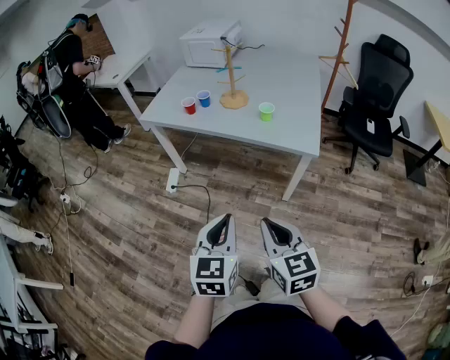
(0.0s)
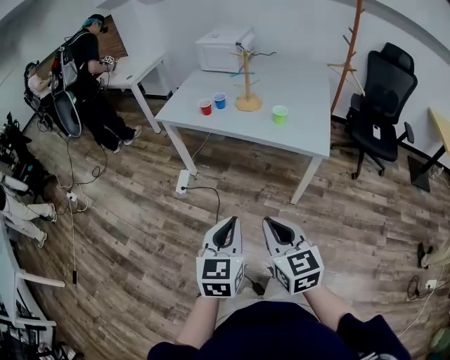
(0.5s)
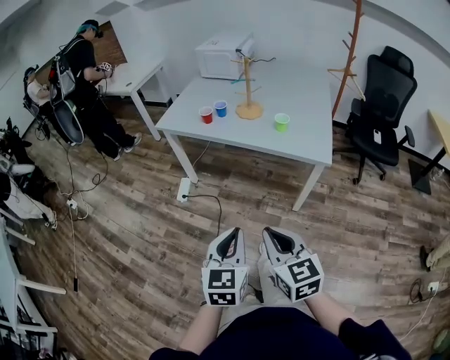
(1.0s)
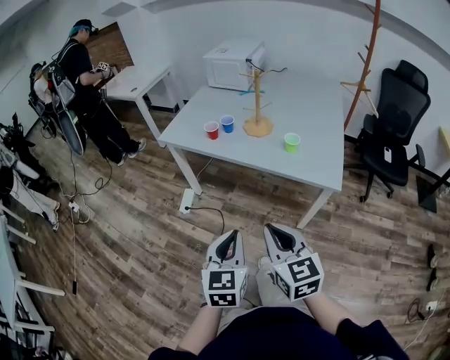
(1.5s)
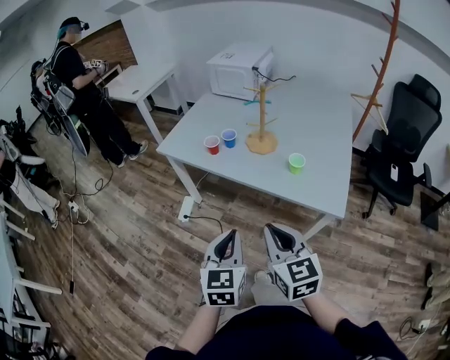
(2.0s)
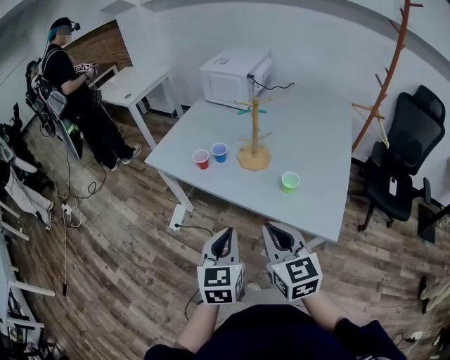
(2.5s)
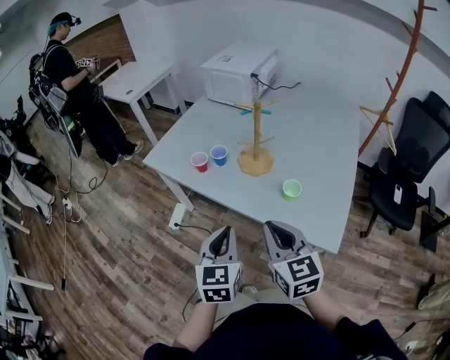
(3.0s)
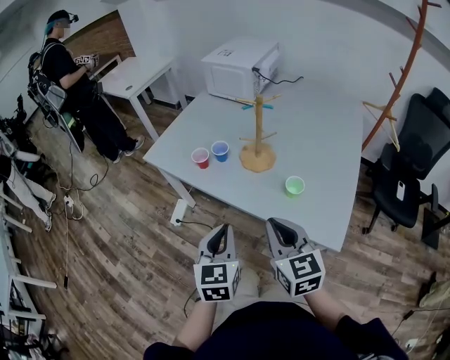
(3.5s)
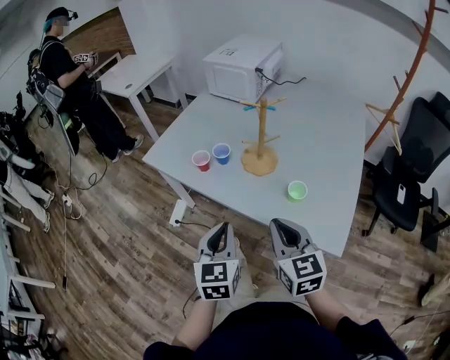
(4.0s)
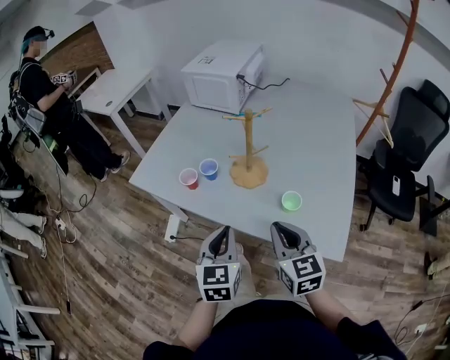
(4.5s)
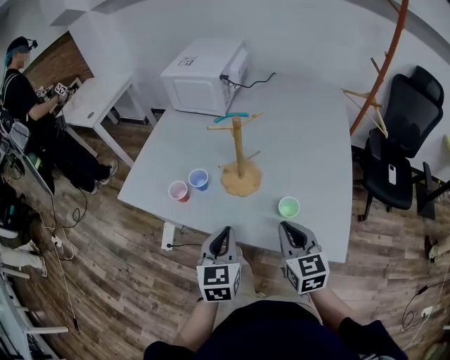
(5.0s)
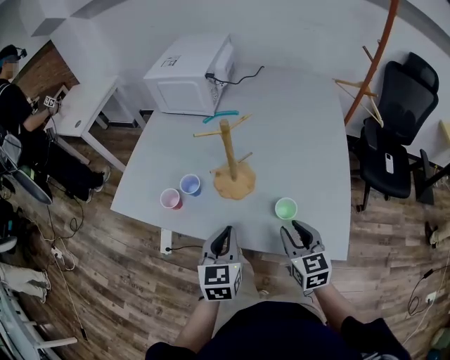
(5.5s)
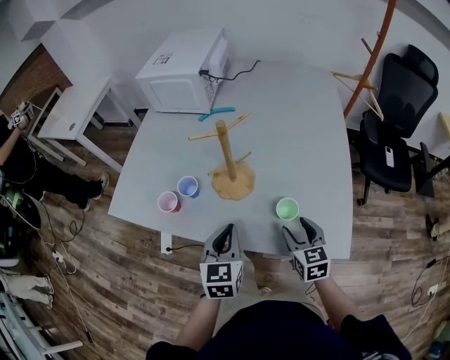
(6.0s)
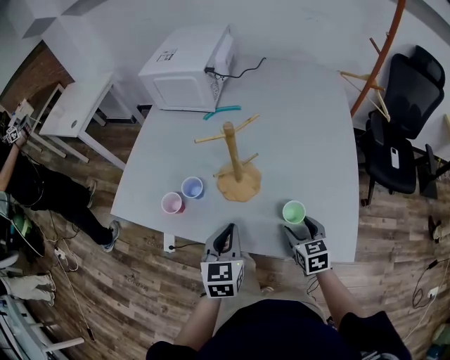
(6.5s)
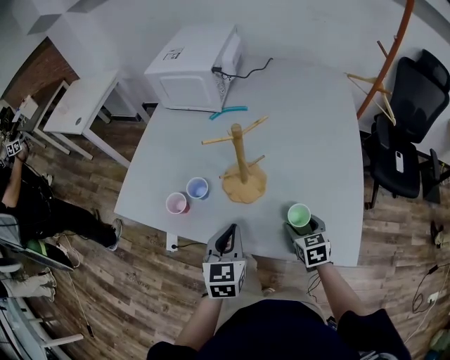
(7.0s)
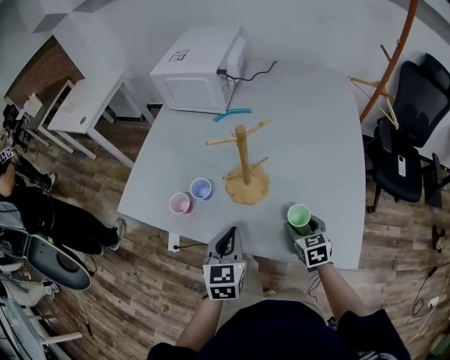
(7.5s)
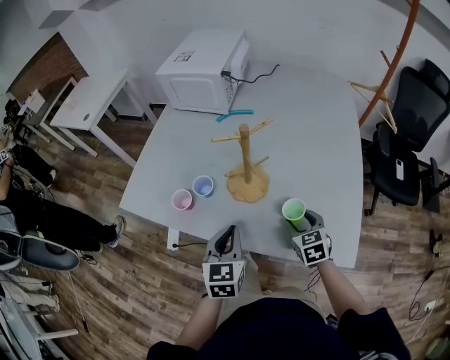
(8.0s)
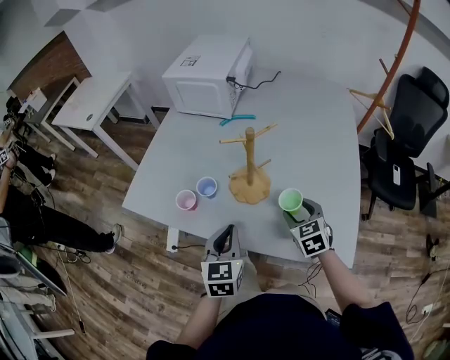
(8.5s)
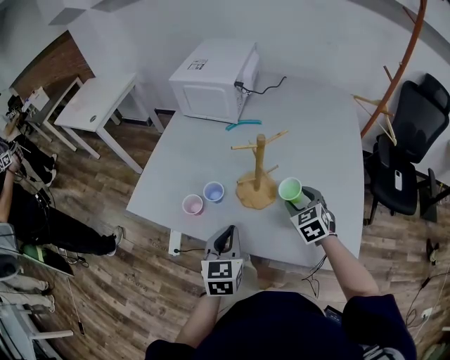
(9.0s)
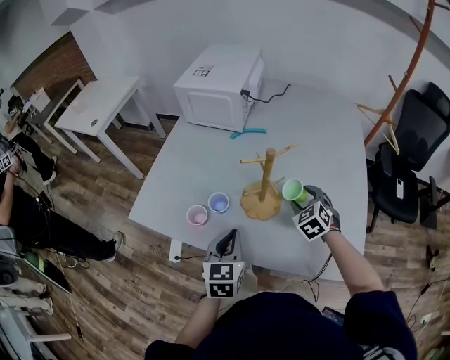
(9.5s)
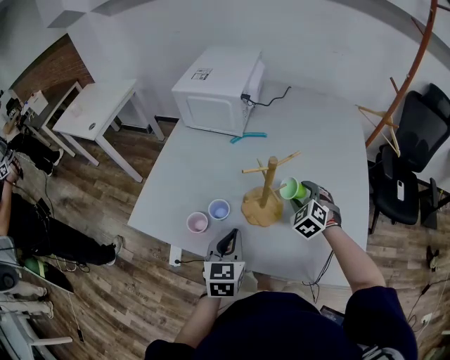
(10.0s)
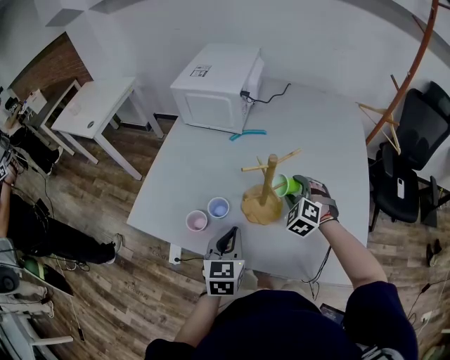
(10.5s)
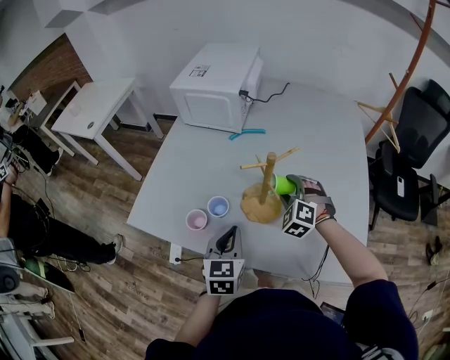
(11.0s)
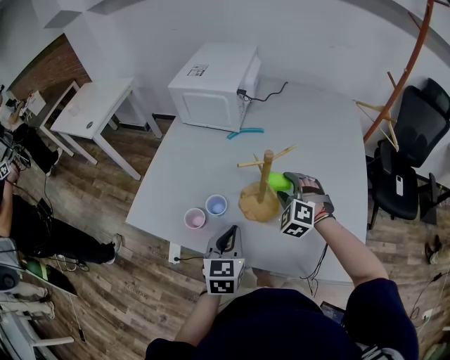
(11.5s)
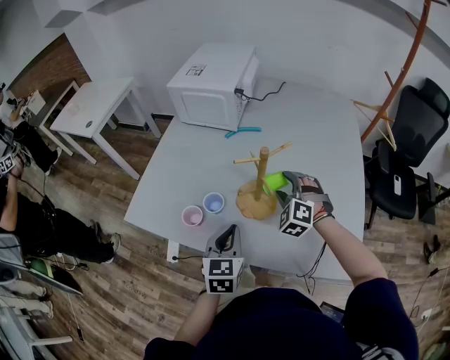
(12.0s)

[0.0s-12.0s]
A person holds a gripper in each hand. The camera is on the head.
0.0s to 2.0s: Both grippers travel together forward, about 20 cm.
2.0s to 4.0s: The left gripper shifts about 15 cm forward; the right gripper is displaced forward and to the right by roughly 15 cm.
4.0s to 6.0s: The left gripper is displaced forward and downward by approximately 15 cm. The right gripper heads downward, to the right and forward, covering about 20 cm, rotates roughly 20 degrees, and opens.
6.0s to 8.0s: The right gripper is displaced forward by approximately 5 cm.
8.0s to 10.0s: The left gripper heads forward, covering about 5 cm. The right gripper is displaced forward by roughly 15 cm, and rotates about 40 degrees.
10.0s to 12.0s: The right gripper ends up some 5 cm from where it was.

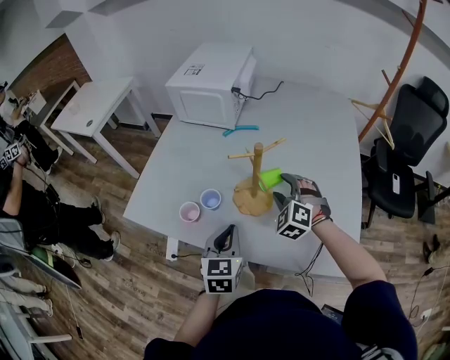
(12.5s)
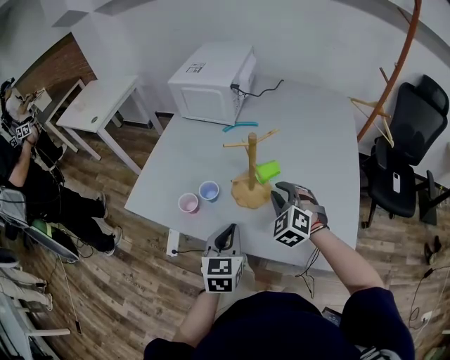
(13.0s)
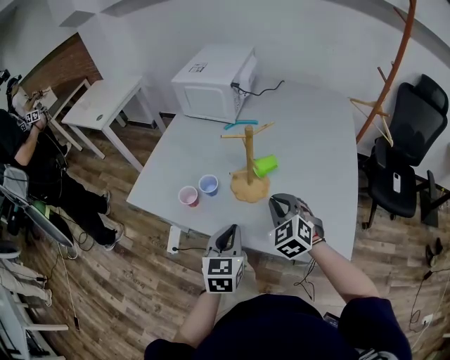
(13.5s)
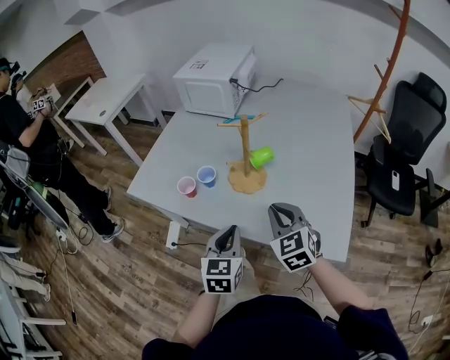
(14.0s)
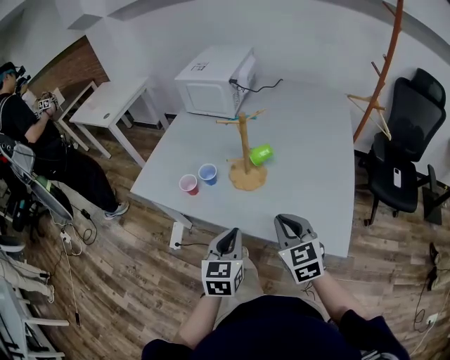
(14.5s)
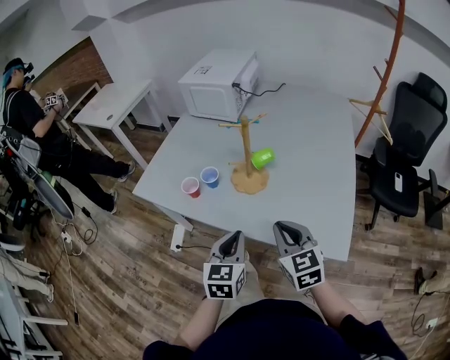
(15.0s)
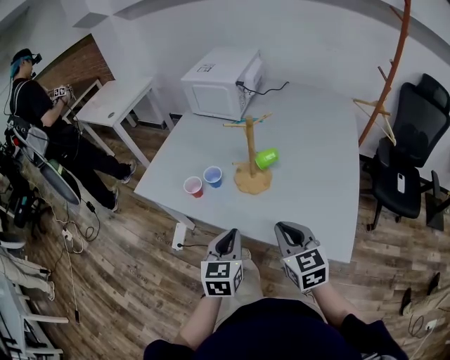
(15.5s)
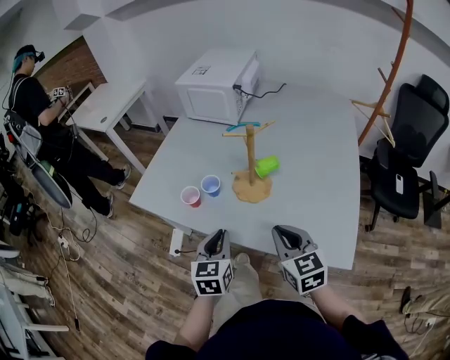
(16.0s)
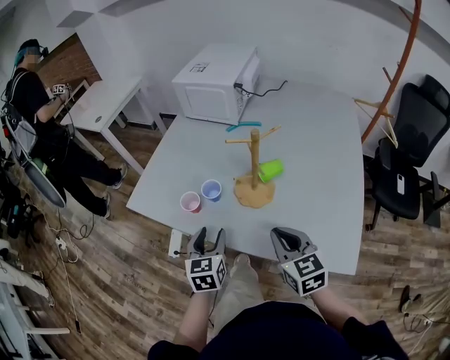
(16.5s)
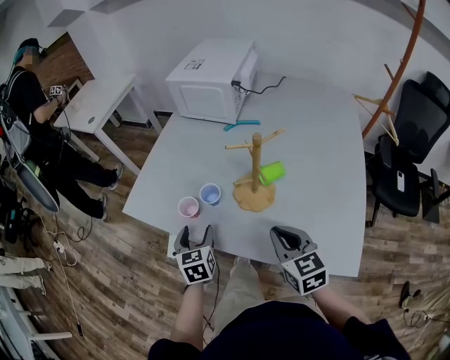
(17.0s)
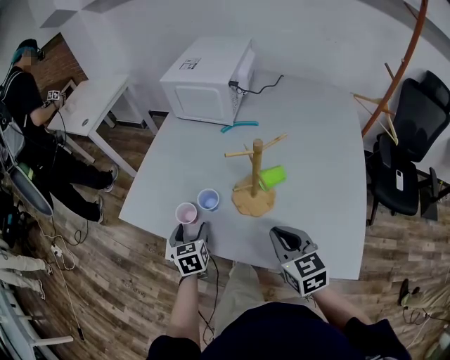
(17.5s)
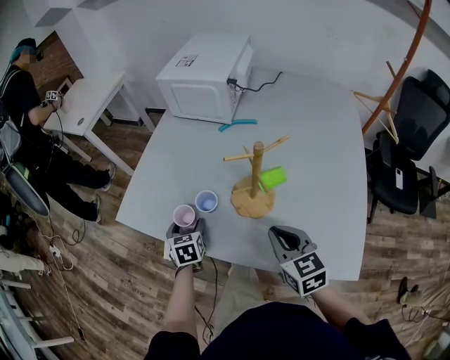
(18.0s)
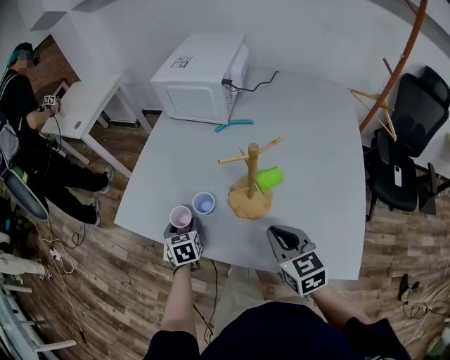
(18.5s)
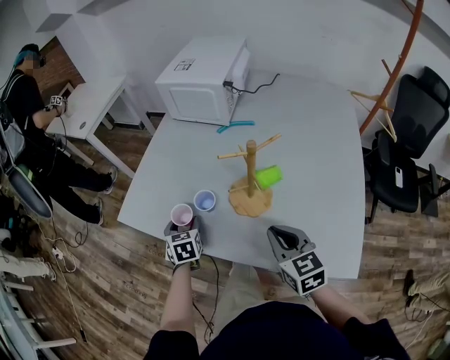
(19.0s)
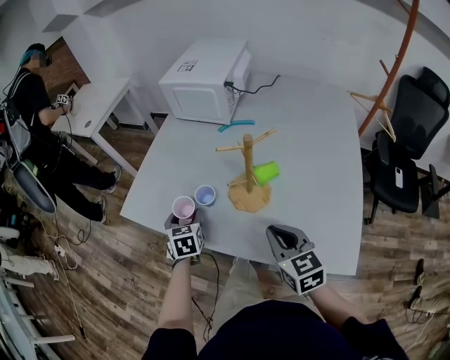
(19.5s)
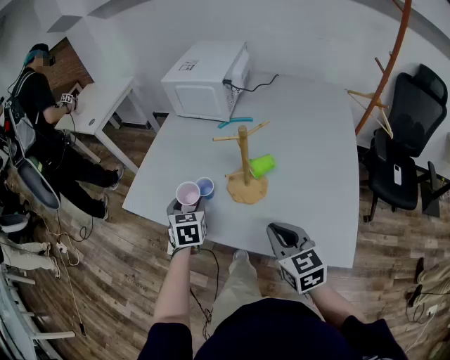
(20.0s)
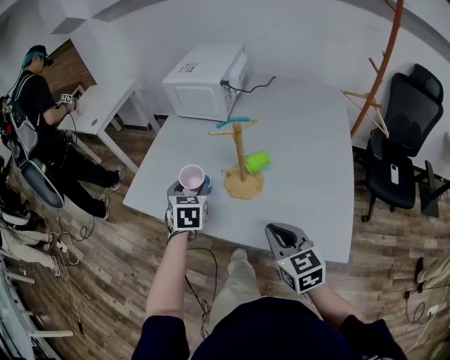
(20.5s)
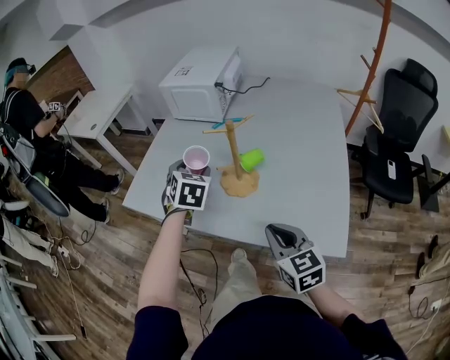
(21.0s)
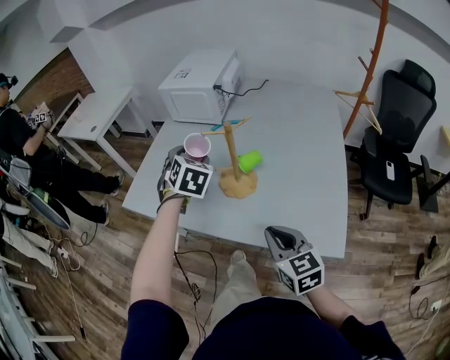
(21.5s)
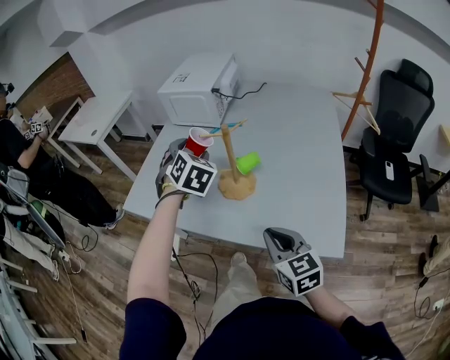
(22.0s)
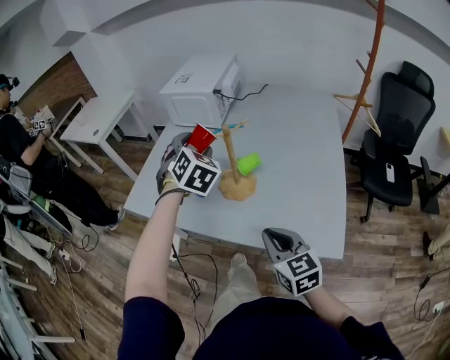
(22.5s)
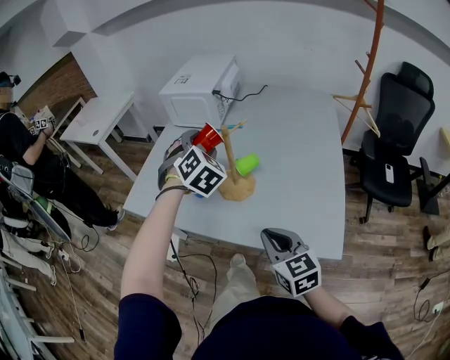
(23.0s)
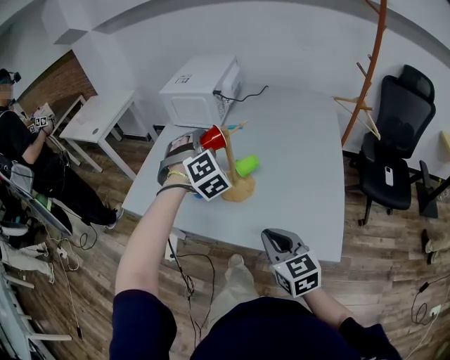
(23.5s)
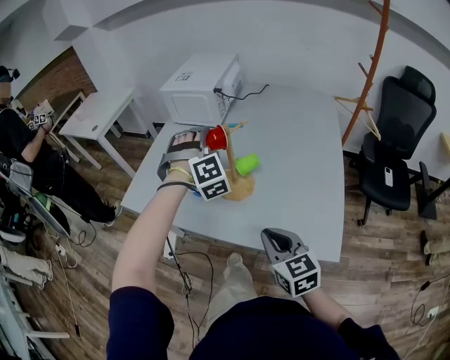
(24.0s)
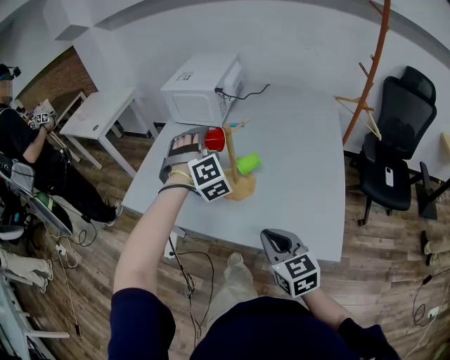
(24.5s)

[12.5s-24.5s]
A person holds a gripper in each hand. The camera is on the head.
12.5s to 14.5s: The right gripper shifts roughly 25 cm backward, rotates around the line of its fingers by about 50 degrees, clockwise from behind, and closes its fingers; the left gripper is displaced backward by approximately 15 cm.
14.5s to 16.5s: The right gripper travels forward by approximately 5 cm. Meanwhile the left gripper goes roughly 15 cm forward and to the left, and opens its fingers.
16.5s to 18.5s: The right gripper goes roughly 5 cm forward, while the left gripper moves forward, downward and to the left, roughly 20 cm.
18.5s to 20.5s: The left gripper is displaced upward and to the right by about 15 cm. The right gripper travels backward by roughly 10 cm.
20.5s to 22.5s: The left gripper is displaced upward and to the right by some 15 cm, and rotates some 30 degrees.
22.5s to 24.5s: The left gripper changes its angle by about 40 degrees.

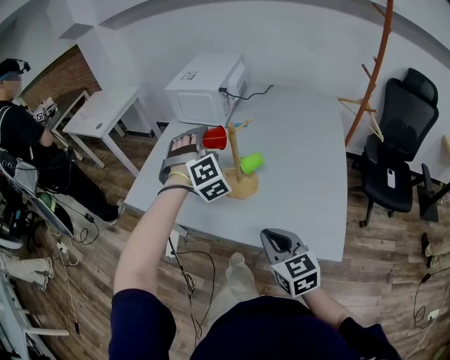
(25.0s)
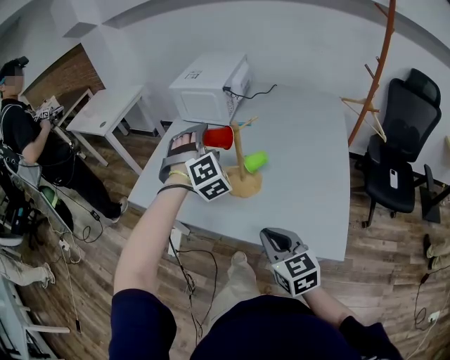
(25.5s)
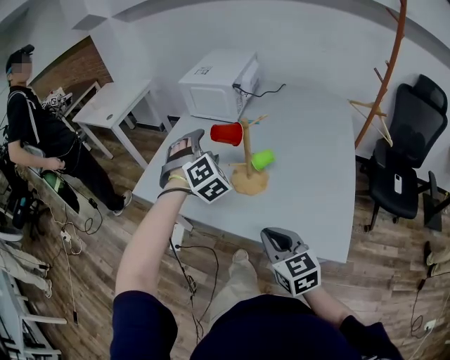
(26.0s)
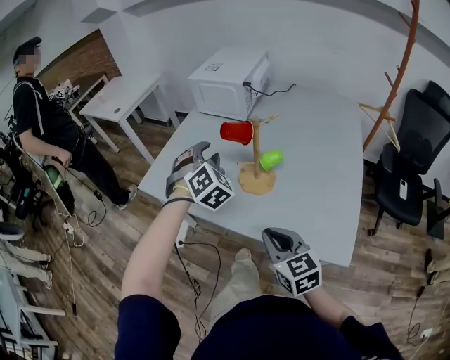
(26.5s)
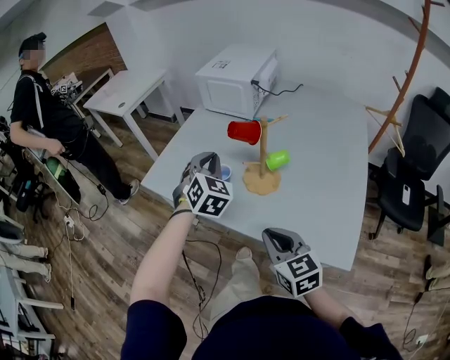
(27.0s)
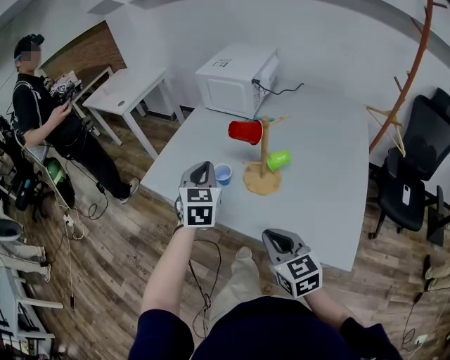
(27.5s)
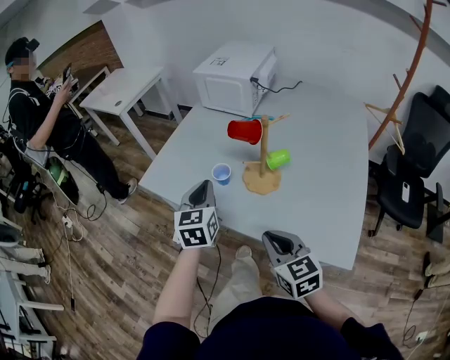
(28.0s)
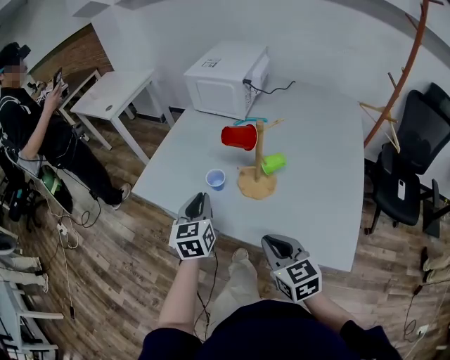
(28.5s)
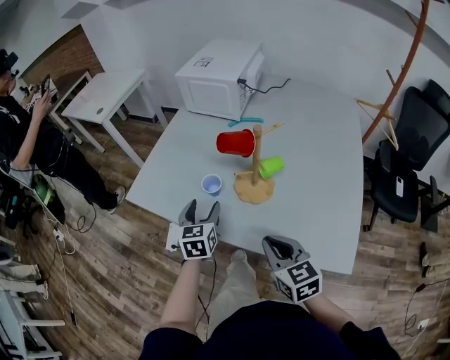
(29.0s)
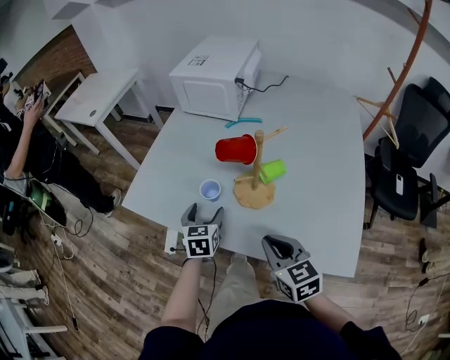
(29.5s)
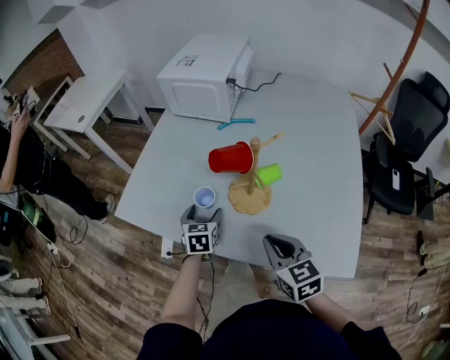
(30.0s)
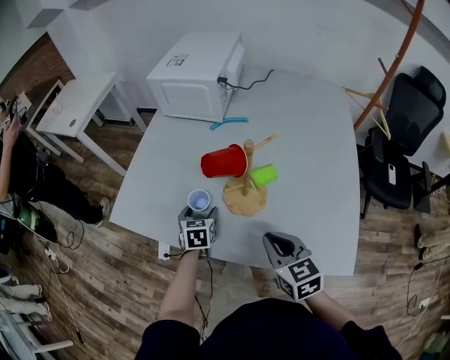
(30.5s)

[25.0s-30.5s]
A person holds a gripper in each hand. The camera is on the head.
25.0s to 27.0s: The left gripper goes some 10 cm to the left, rotates around the line of its fingers by approximately 40 degrees, counterclockwise from behind, and closes up.
27.0s to 28.5s: The left gripper shifts about 10 cm downward, backward and to the left, and rotates around the line of its fingers by approximately 40 degrees, counterclockwise from behind.
28.5s to 30.5s: The right gripper goes approximately 10 cm forward. Meanwhile the left gripper heads downward and forward, covering about 20 cm, rotates some 30 degrees, and opens up.
